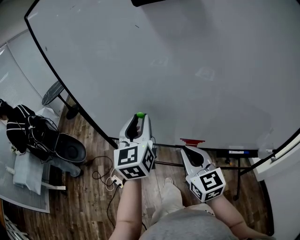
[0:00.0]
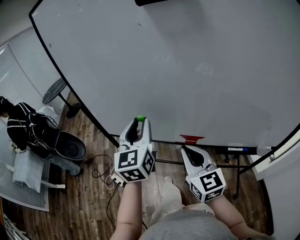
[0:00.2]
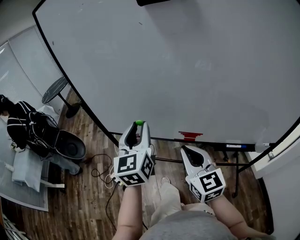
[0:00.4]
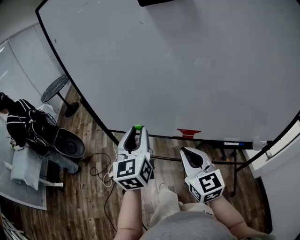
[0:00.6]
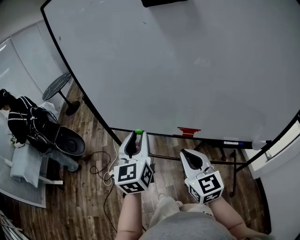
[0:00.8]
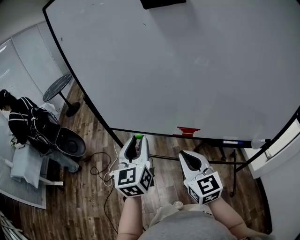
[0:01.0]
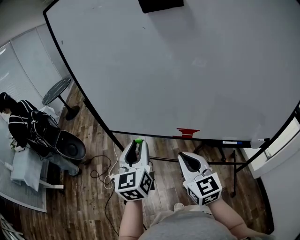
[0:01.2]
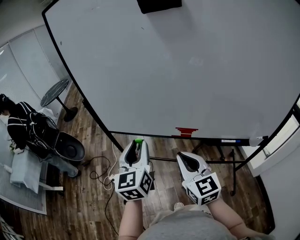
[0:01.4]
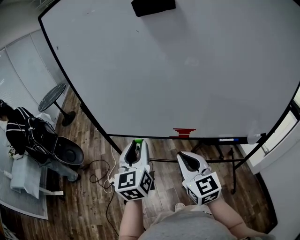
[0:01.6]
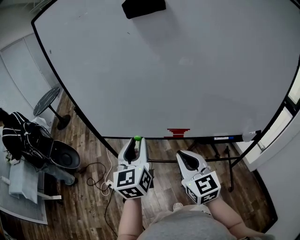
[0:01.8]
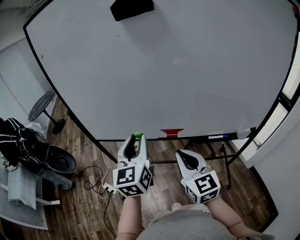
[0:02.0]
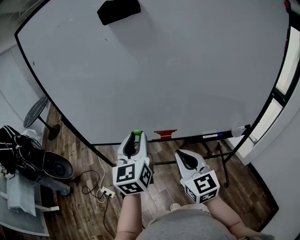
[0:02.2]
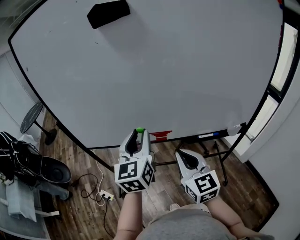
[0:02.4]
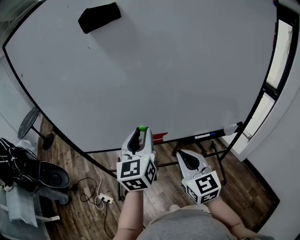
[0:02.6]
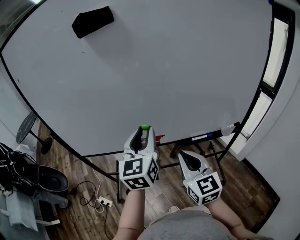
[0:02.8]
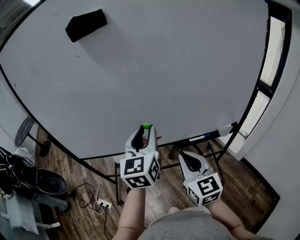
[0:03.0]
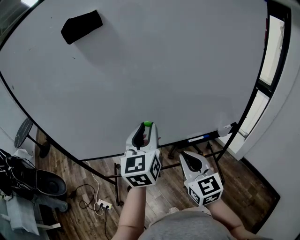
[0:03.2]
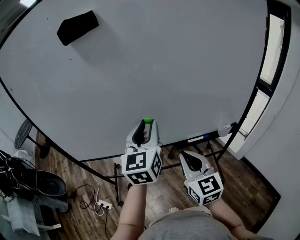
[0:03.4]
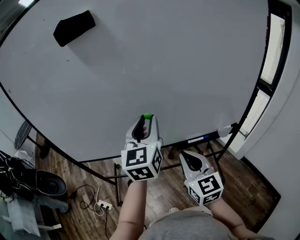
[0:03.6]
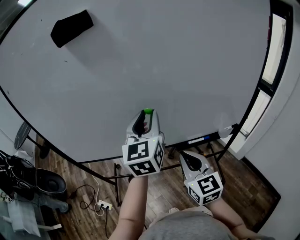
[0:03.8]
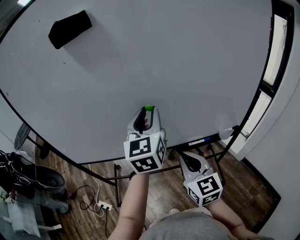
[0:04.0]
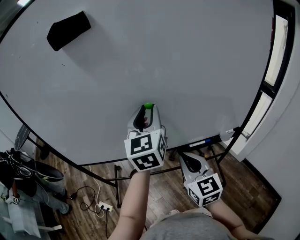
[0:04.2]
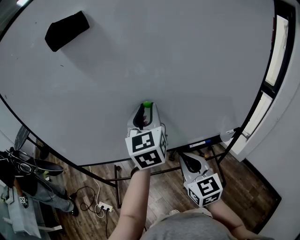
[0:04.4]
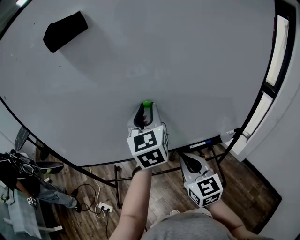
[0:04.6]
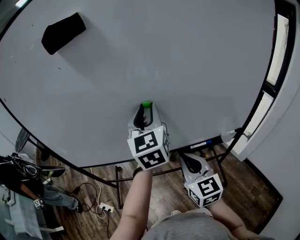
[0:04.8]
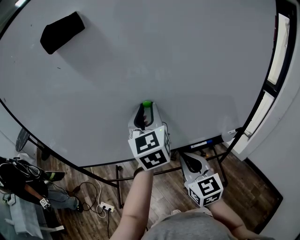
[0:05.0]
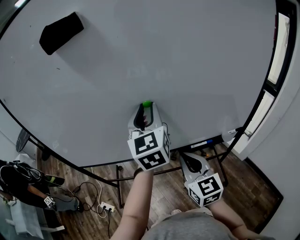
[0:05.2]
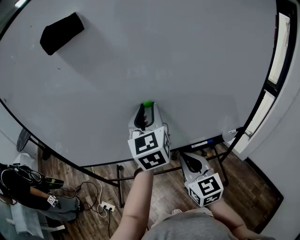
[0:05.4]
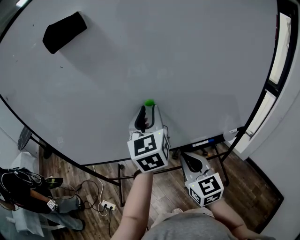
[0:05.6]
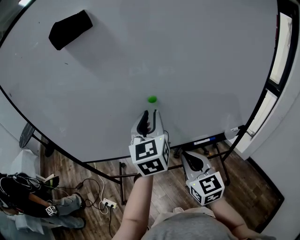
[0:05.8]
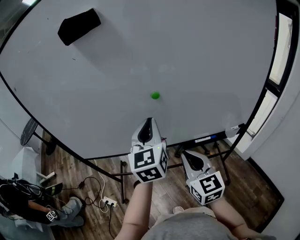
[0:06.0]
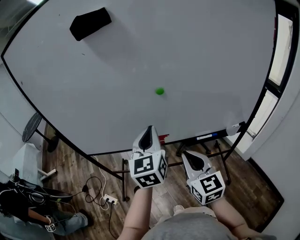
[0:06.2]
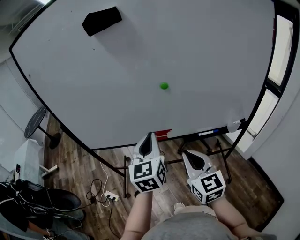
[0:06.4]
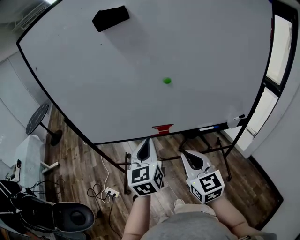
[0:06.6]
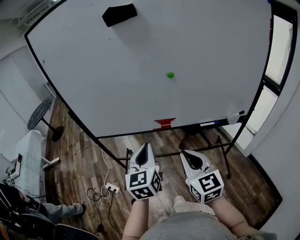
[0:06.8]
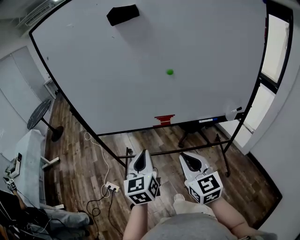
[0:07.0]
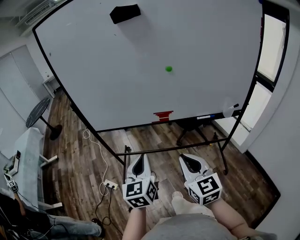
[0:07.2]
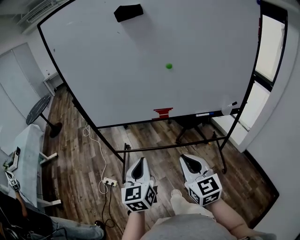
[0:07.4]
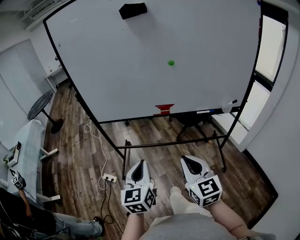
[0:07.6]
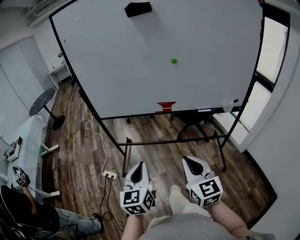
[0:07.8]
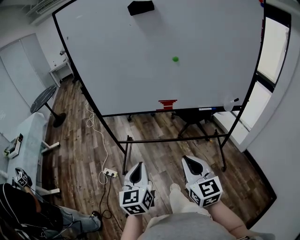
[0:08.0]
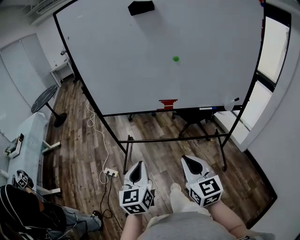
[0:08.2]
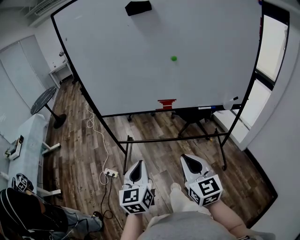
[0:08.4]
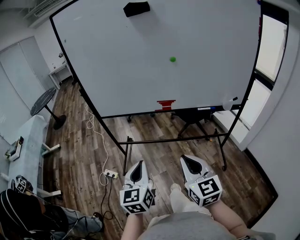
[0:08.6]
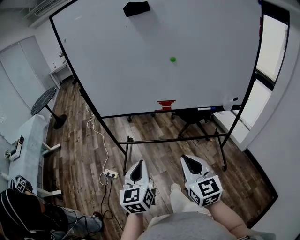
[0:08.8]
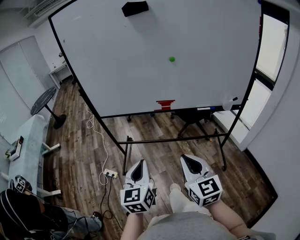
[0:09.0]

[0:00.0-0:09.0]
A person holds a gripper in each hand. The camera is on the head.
0:00.0 to 0:01.6: The two grippers go about 15 cm backward.
0:01.6 to 0:03.0: The grippers both shift to the right by approximately 15 cm. The left gripper swivels roughly 20 degrees.
0:03.0 to 0:04.4: The right gripper heads forward, covering roughly 5 cm, while the left gripper is displaced forward by about 10 cm.
0:04.4 to 0:06.0: The left gripper is displaced backward by about 5 cm, and closes its fingers.
0:06.0 to 0:07.6: The grippers both shift backward and to the left by about 35 cm.
0:07.6 to 0:09.0: The grippers stay close to where they were, moving slightly.

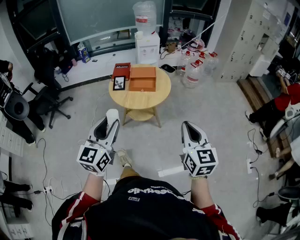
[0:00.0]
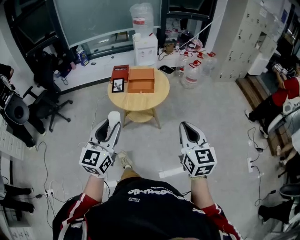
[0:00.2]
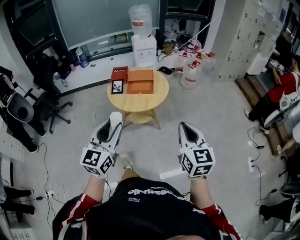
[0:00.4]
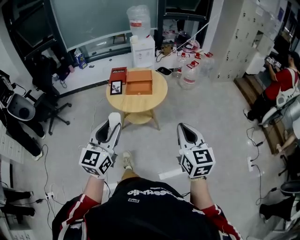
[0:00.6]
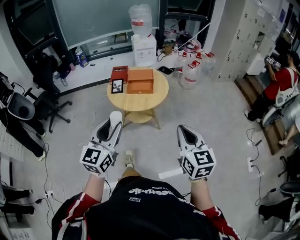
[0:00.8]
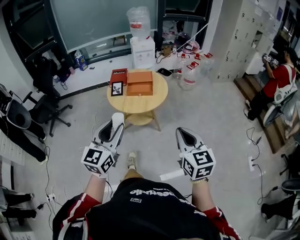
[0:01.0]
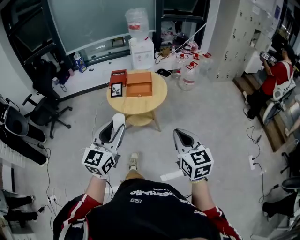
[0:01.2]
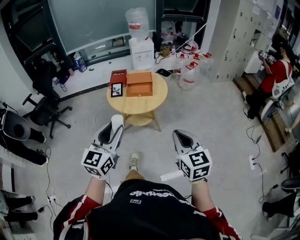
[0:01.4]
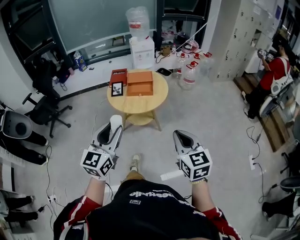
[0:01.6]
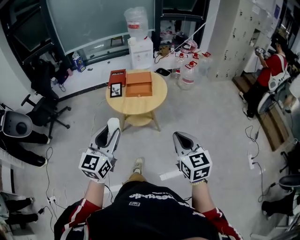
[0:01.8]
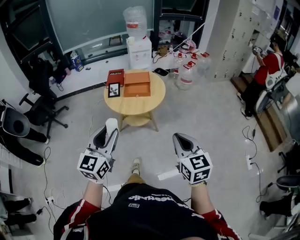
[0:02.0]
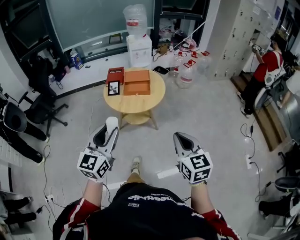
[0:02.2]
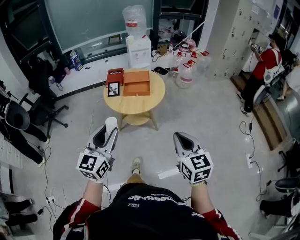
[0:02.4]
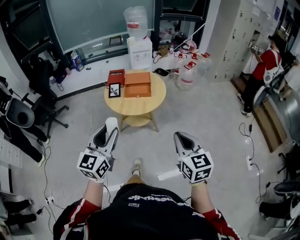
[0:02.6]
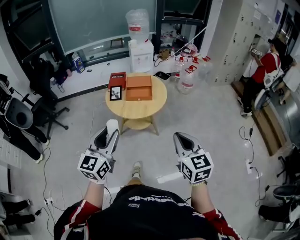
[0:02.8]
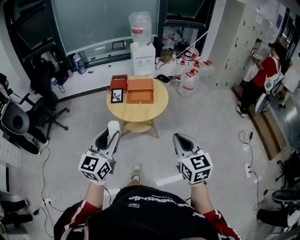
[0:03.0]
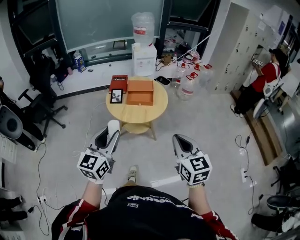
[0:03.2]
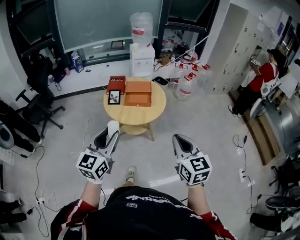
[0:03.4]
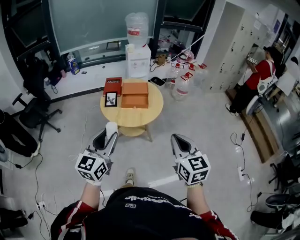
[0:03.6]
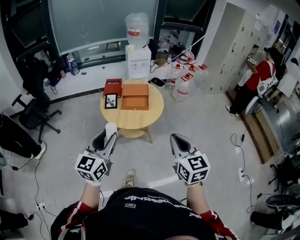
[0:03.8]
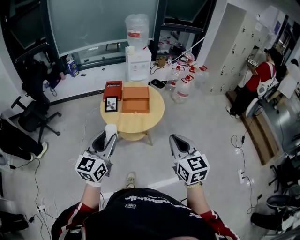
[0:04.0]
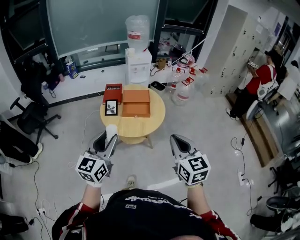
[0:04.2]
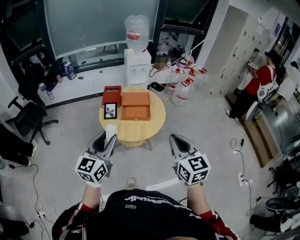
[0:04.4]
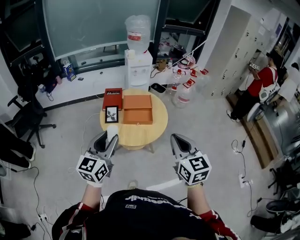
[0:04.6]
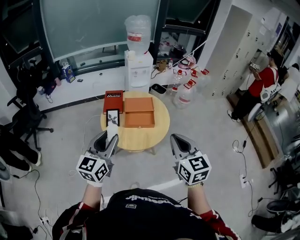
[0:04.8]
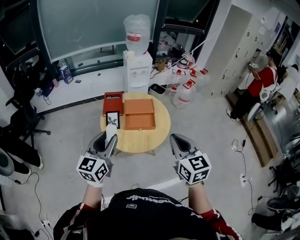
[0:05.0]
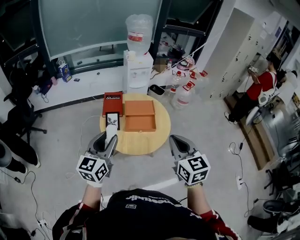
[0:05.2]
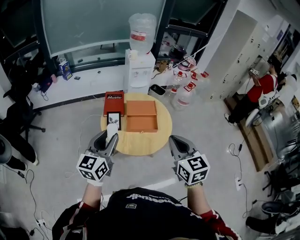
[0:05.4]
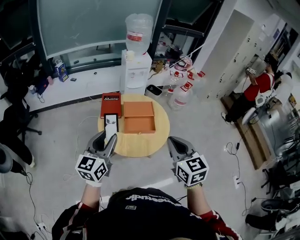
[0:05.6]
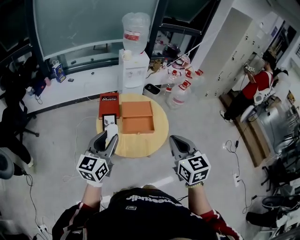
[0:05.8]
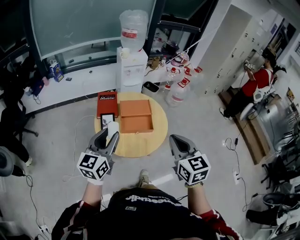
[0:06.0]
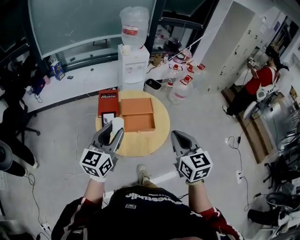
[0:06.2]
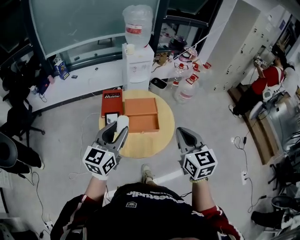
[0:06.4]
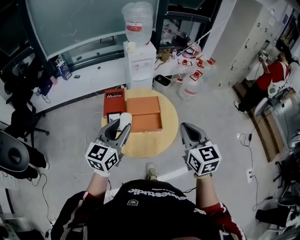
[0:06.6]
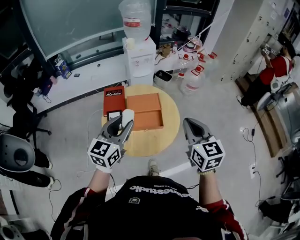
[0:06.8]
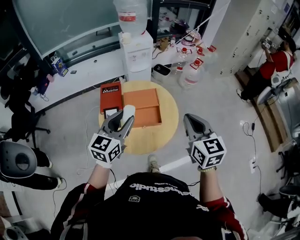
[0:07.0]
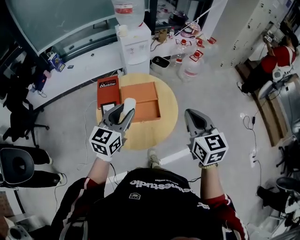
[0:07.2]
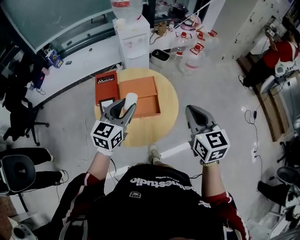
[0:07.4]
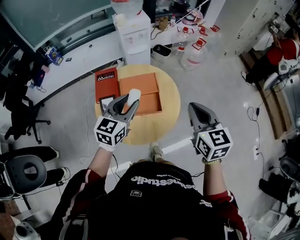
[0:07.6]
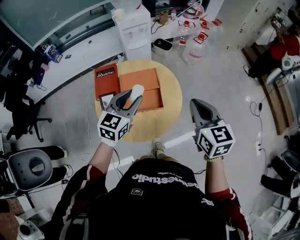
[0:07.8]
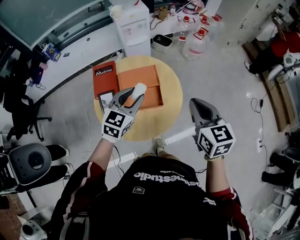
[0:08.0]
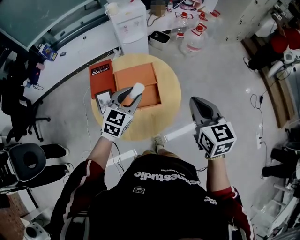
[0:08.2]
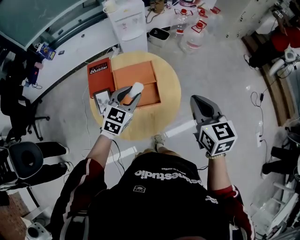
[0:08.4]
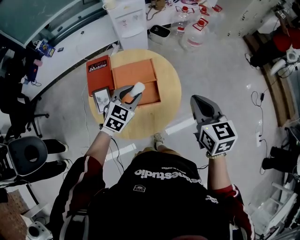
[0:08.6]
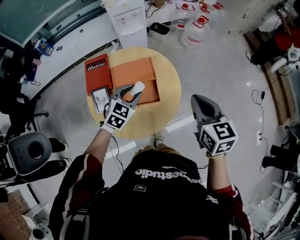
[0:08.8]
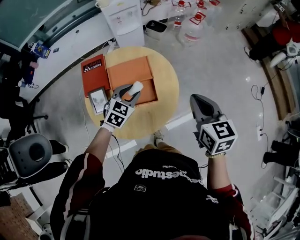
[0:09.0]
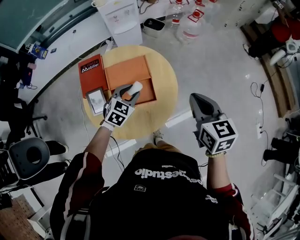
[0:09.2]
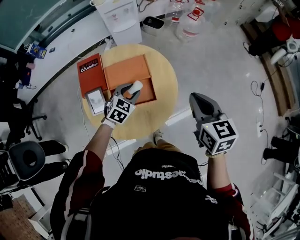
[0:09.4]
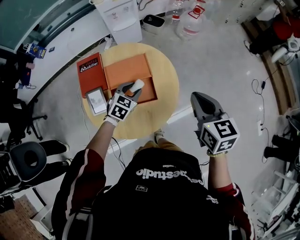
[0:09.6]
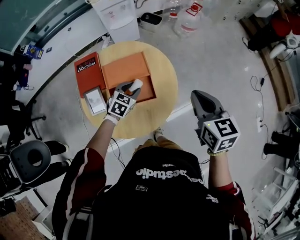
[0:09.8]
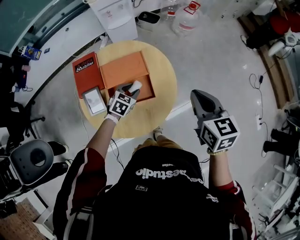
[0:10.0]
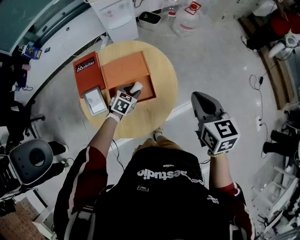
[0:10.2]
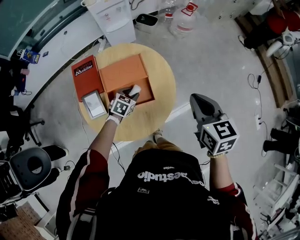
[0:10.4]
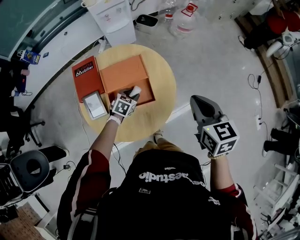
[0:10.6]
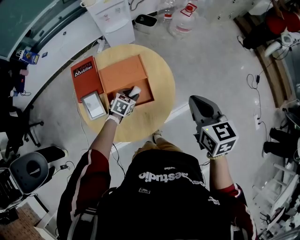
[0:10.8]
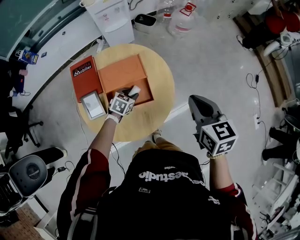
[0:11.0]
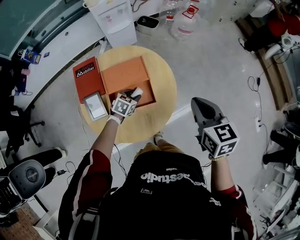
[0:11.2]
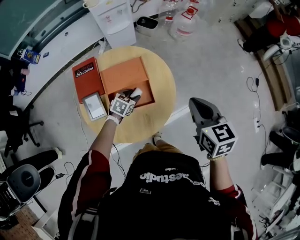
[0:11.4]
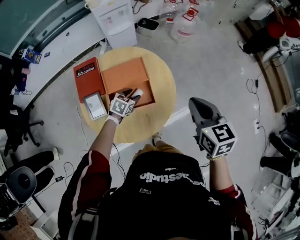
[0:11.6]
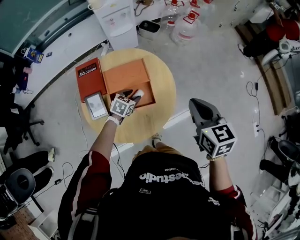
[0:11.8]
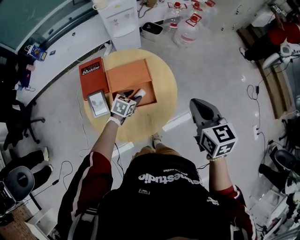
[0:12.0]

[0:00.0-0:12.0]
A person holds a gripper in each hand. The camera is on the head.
0:00.0 to 0:03.0: The grippers stay close to where they were, moving slightly.
0:03.0 to 0:04.4: The grippers both shift forward by about 15 cm.
0:04.4 to 0:06.0: The right gripper moves forward and to the left, about 15 cm. The left gripper is displaced forward by some 20 cm.
0:06.0 to 0:07.6: The right gripper is displaced forward and to the right by some 20 cm. Meanwhile the left gripper is displaced forward, to the right and downward by approximately 25 cm.
0:07.6 to 0:09.0: The left gripper goes some 20 cm downward and forward, and changes its angle by approximately 30 degrees; the right gripper heads downward and forward, covering some 10 cm.
0:09.0 to 0:10.4: The left gripper is displaced downward by approximately 15 cm.
0:10.4 to 0:12.0: The grippers move only a little.

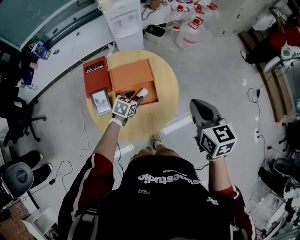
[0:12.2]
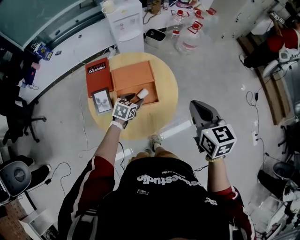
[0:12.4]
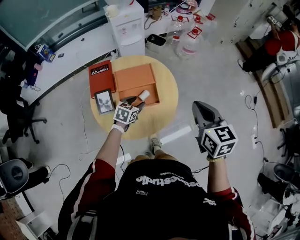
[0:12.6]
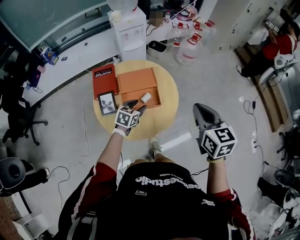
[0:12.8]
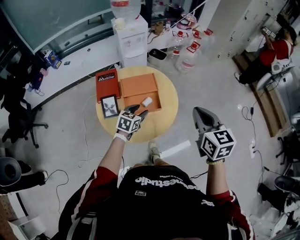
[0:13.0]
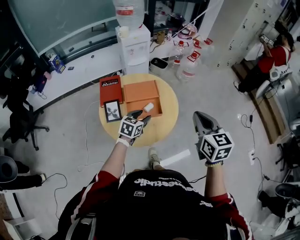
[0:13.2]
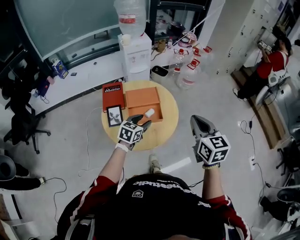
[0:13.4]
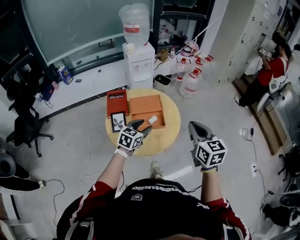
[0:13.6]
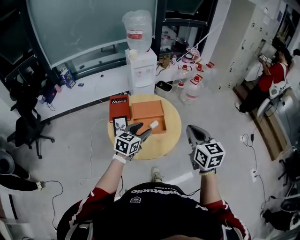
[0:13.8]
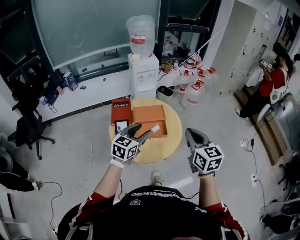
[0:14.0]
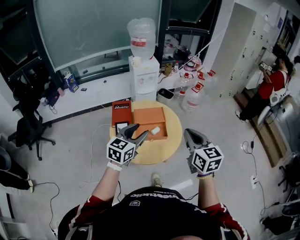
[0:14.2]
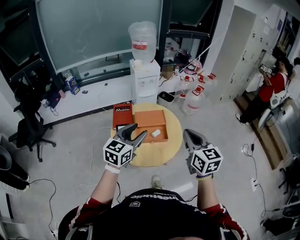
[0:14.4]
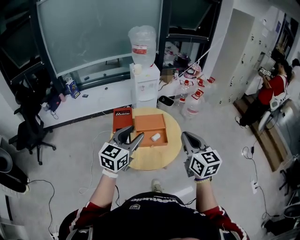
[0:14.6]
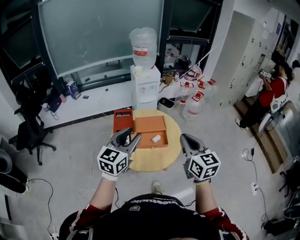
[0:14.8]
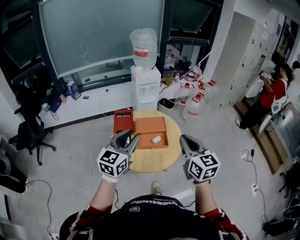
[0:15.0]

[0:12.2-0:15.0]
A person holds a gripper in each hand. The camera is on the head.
0:12.2 to 0:13.6: The right gripper moves backward and upward, about 15 cm. Meanwhile the left gripper shifts roughly 25 cm upward and backward.
0:13.6 to 0:15.0: The right gripper is displaced to the left and upward by about 10 cm; the left gripper shifts some 20 cm upward and to the left, swivels some 30 degrees, and closes.
